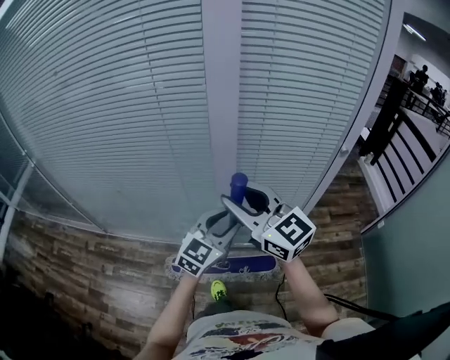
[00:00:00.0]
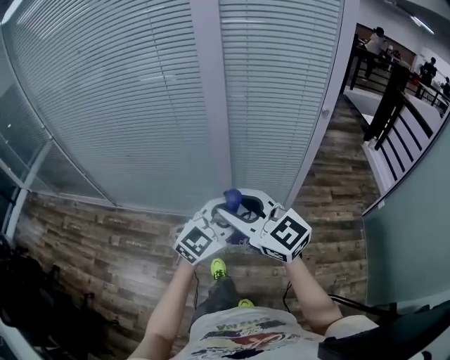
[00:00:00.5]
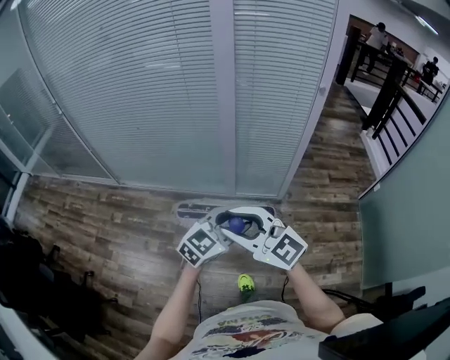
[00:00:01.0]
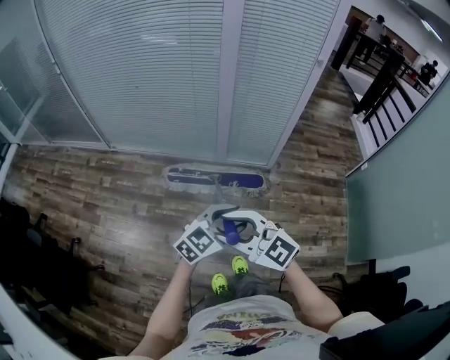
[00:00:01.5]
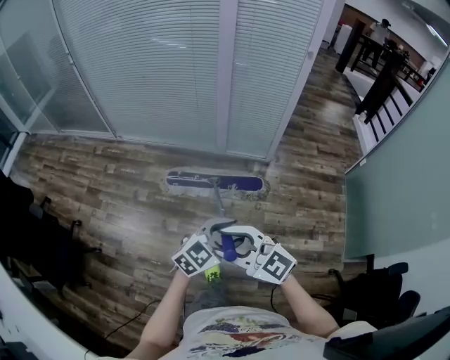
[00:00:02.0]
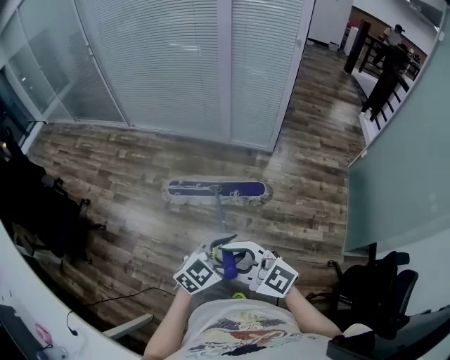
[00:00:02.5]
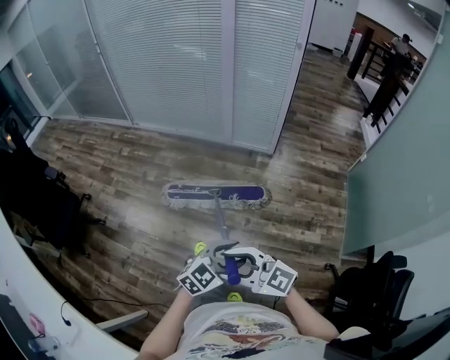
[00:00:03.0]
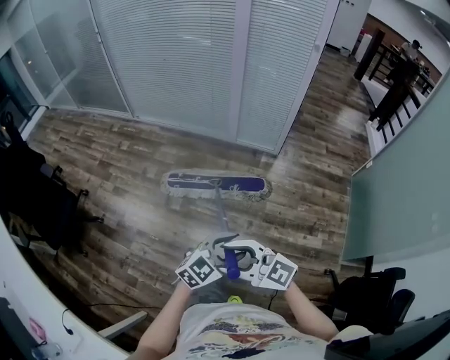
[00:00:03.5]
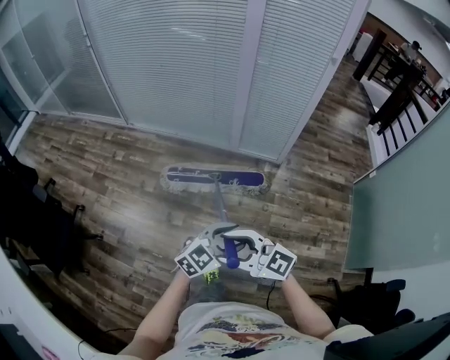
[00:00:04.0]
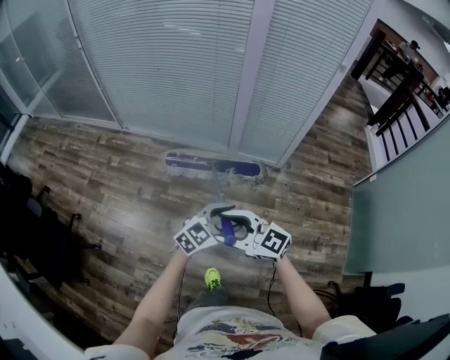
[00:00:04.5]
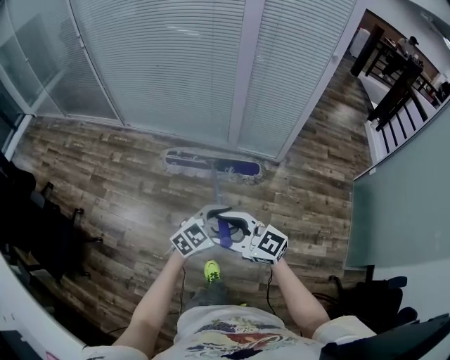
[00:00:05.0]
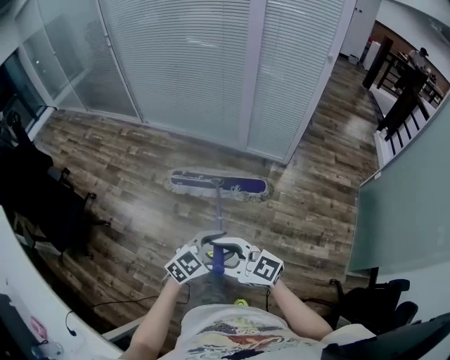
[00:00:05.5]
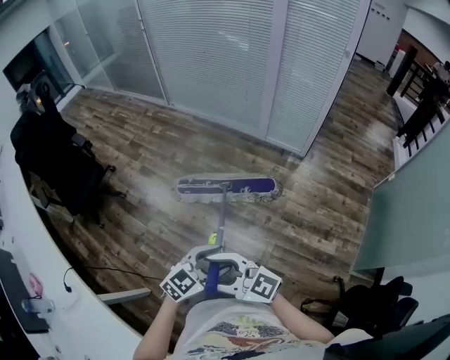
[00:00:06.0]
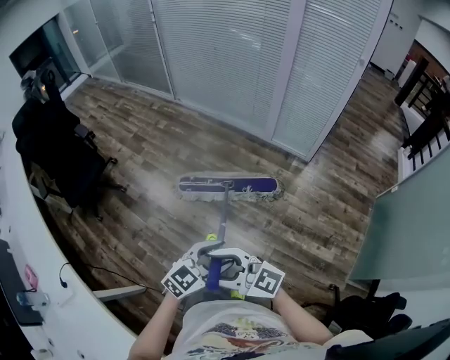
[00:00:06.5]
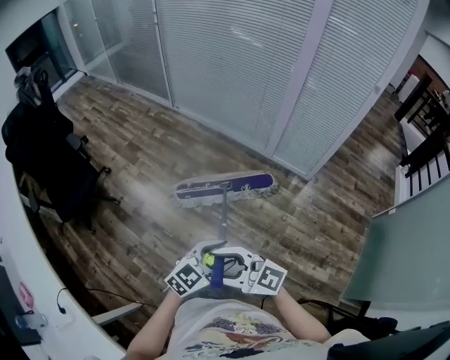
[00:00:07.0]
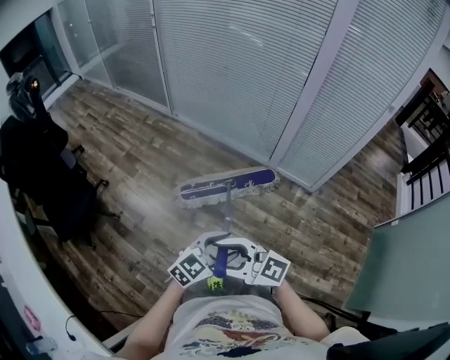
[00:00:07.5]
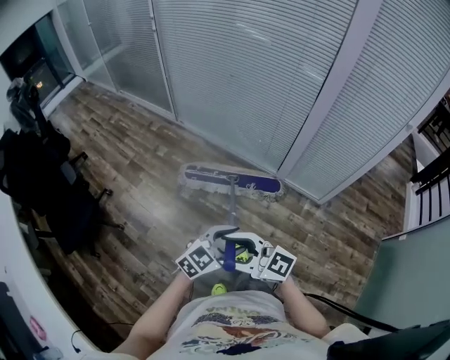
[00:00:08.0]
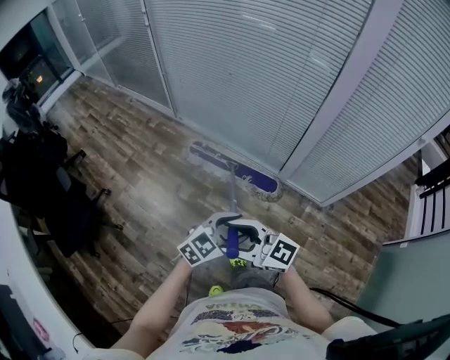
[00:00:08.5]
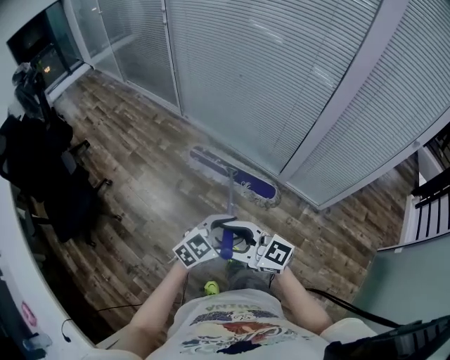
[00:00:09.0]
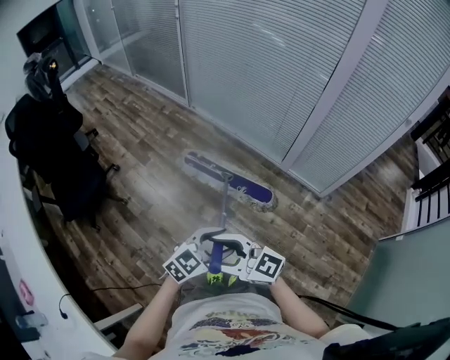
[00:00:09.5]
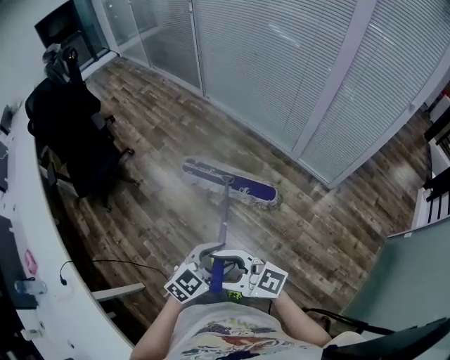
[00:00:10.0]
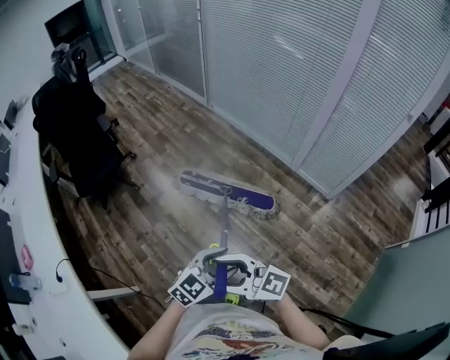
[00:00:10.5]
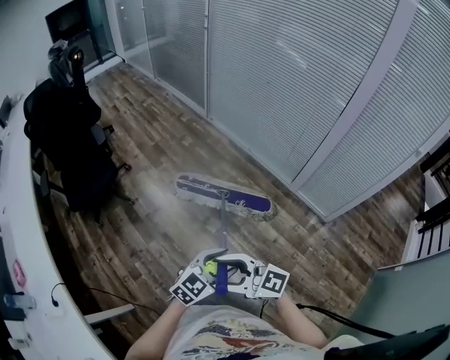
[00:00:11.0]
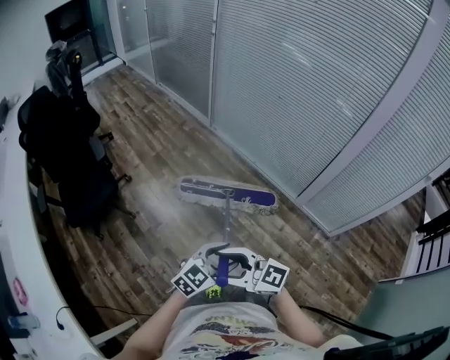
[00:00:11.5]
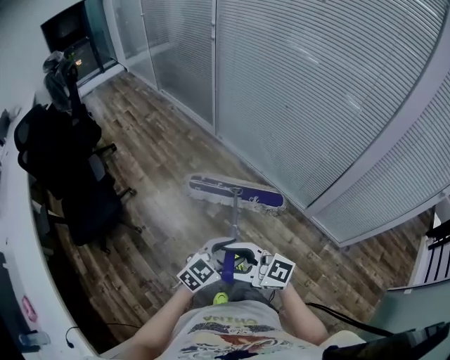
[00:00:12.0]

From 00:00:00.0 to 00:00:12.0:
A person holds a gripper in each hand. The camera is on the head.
From 00:00:00.0 to 00:00:02.0: The pair of grippers is taken roughly 80 cm. The right gripper rotates approximately 30 degrees.
From 00:00:04.0 to 00:00:06.0: The right gripper changes place by approximately 40 cm; the left gripper ends up approximately 35 cm from where it was.
From 00:00:06.0 to 00:00:08.0: The pair of grippers is taken roughly 60 cm.
From 00:00:08.0 to 00:00:10.0: The right gripper ends up about 35 cm from where it was. Meanwhile the left gripper moves roughly 35 cm.
From 00:00:10.0 to 00:00:12.0: The pair of grippers is taken approximately 50 cm.

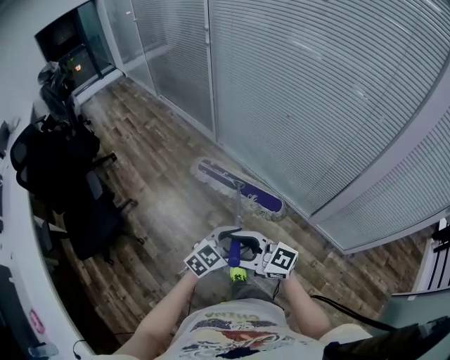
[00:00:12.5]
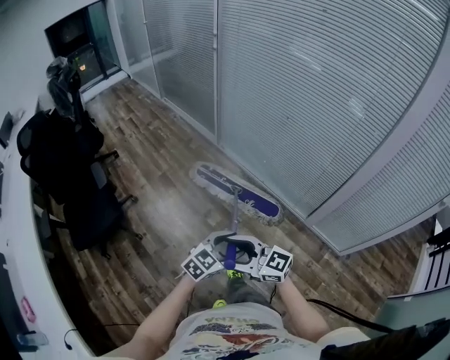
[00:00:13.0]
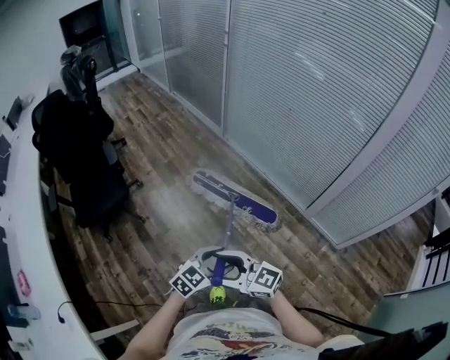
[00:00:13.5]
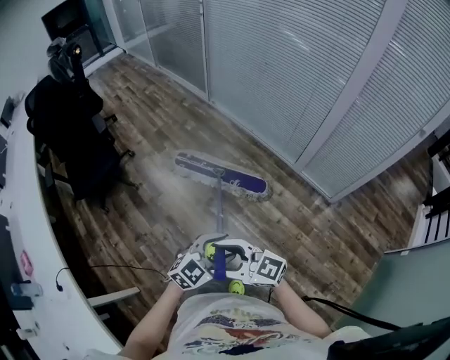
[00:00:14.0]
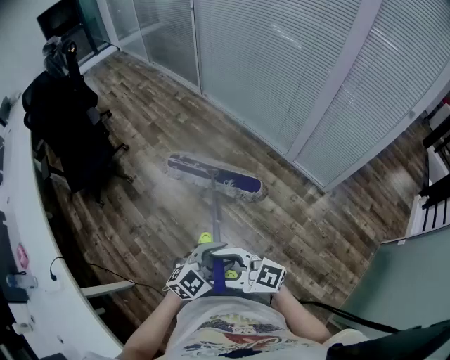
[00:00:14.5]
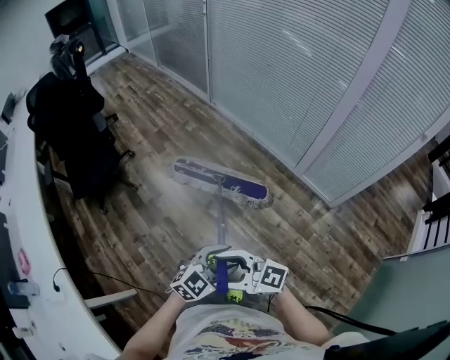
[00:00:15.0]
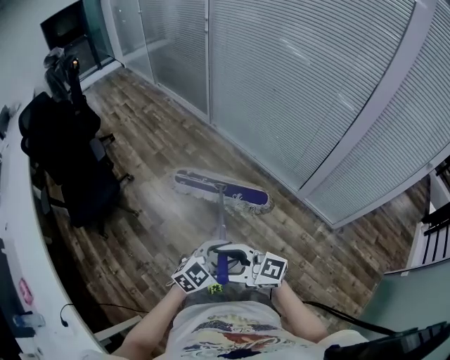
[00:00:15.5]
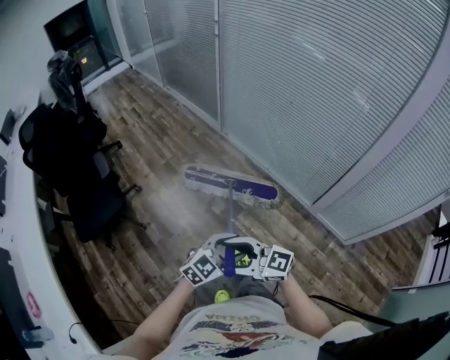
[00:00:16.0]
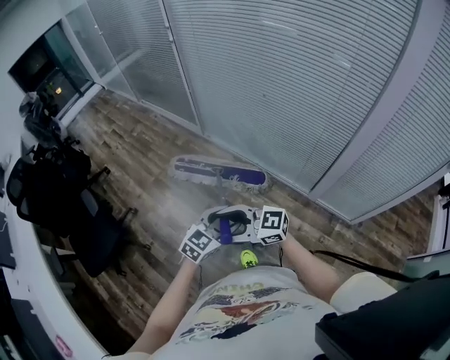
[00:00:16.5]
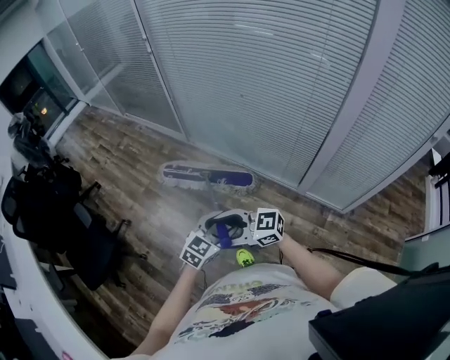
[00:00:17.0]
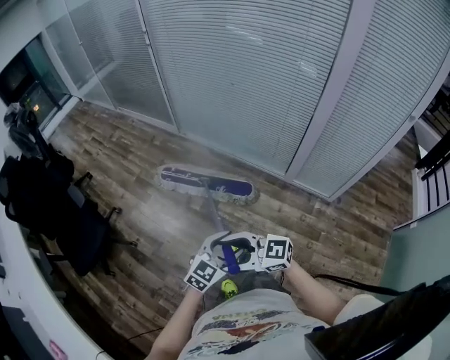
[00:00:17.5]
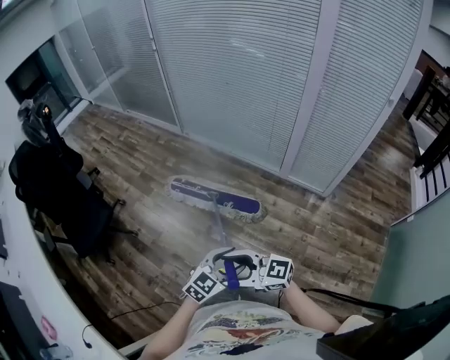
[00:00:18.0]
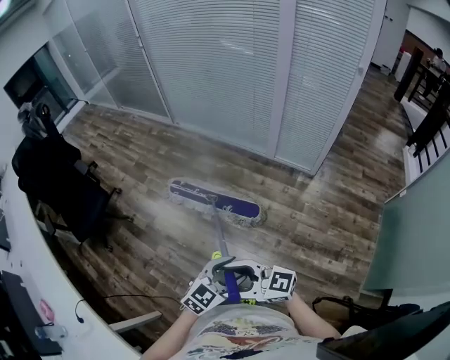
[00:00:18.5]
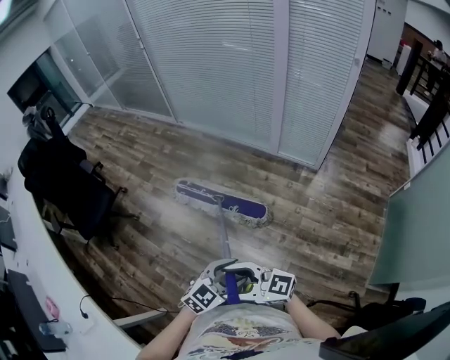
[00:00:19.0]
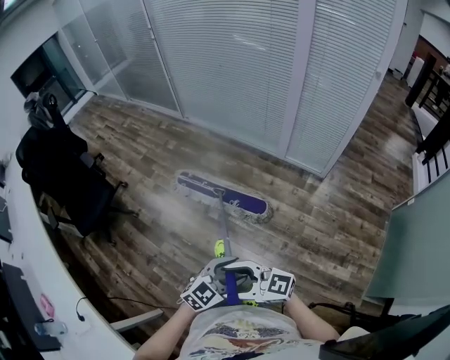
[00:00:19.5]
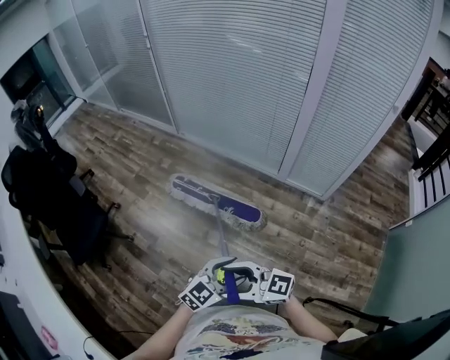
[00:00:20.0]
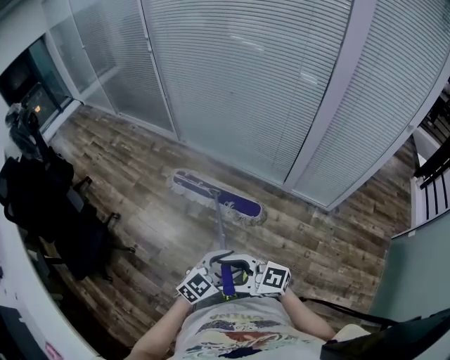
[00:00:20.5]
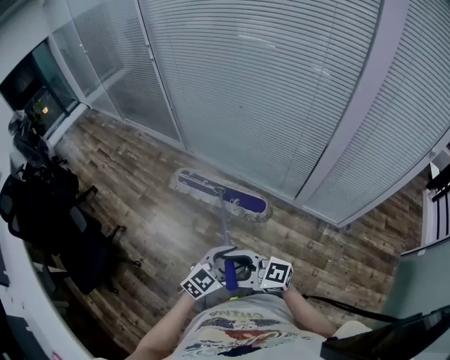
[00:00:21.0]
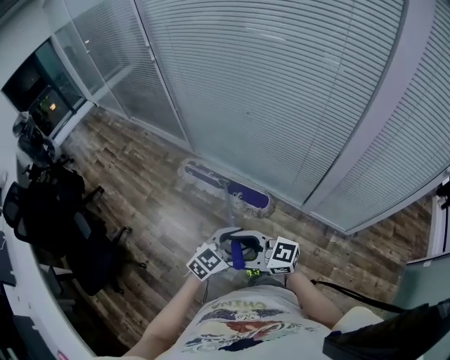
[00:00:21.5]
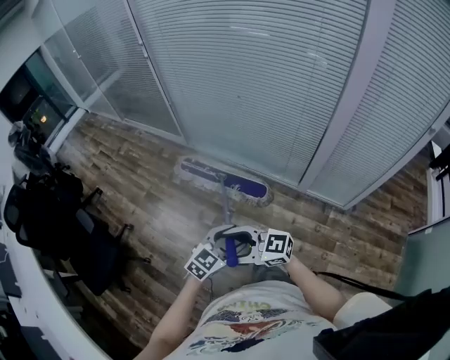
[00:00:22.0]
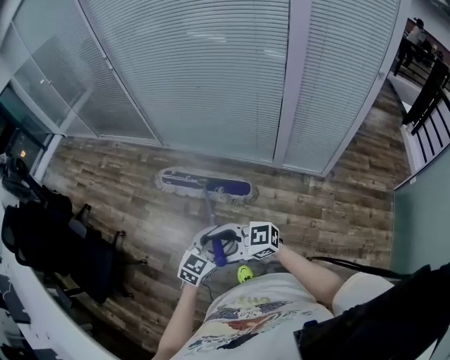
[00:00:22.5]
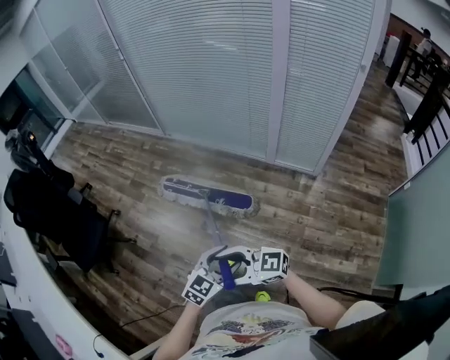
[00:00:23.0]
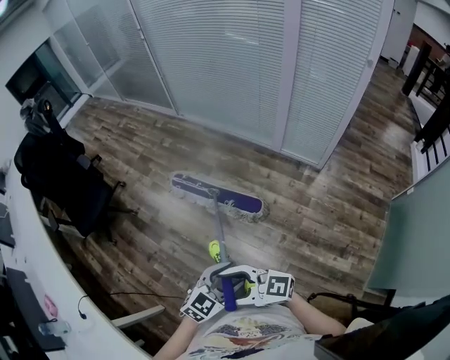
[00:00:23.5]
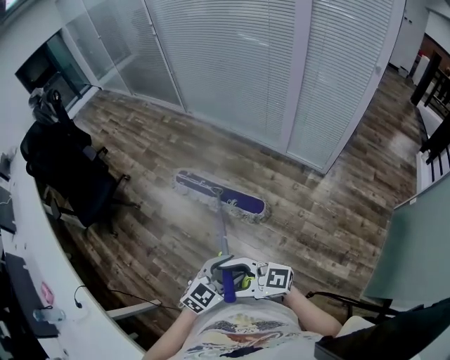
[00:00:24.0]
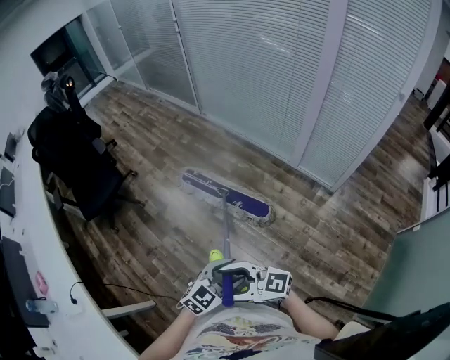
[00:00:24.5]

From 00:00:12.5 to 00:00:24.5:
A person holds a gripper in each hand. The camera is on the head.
From 00:00:12.5 to 00:00:14.5: The pair of grippers is taken some 60 cm.
From 00:00:14.5 to 00:00:16.5: Both grippers are carried about 70 cm.
From 00:00:16.5 to 00:00:18.5: Both grippers are carried approximately 80 cm.
From 00:00:18.5 to 00:00:20.5: Both grippers are carried approximately 50 cm.
From 00:00:22.5 to 00:00:24.5: Both grippers are carried approximately 40 cm.

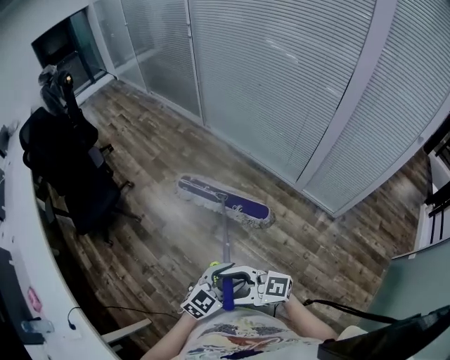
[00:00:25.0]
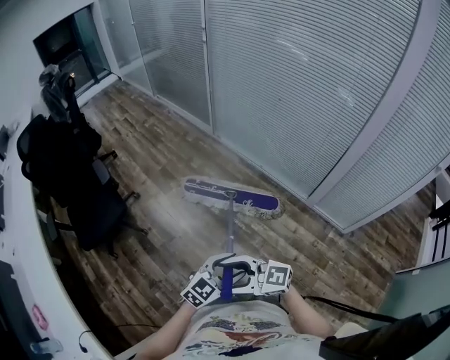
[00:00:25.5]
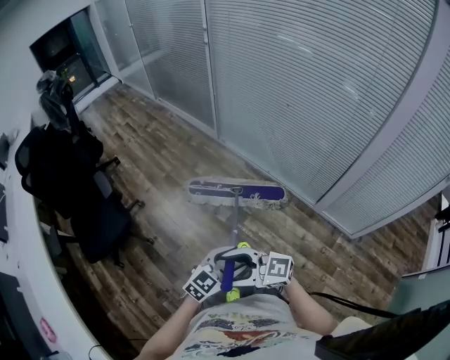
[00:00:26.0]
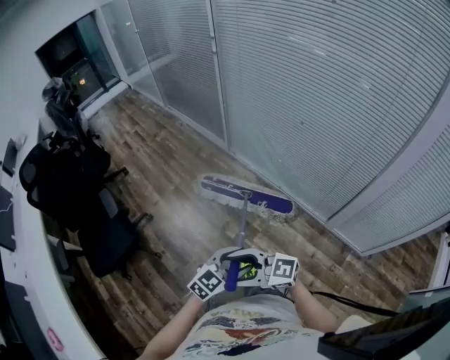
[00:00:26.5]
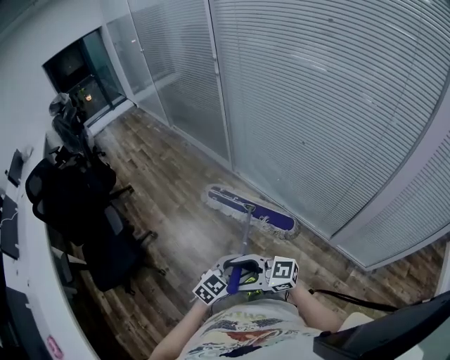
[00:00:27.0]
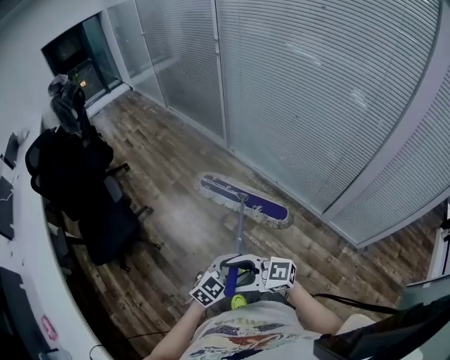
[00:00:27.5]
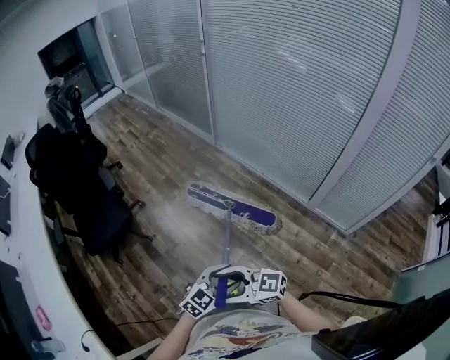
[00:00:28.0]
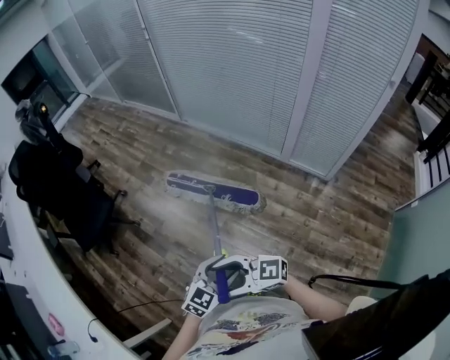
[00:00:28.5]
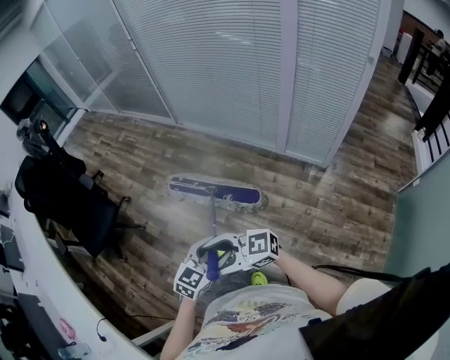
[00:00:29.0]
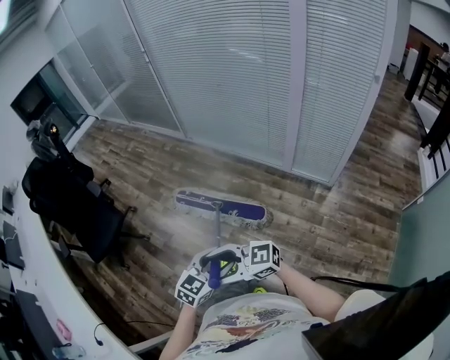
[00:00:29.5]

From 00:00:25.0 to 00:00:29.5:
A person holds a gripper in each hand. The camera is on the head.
From 00:00:25.0 to 00:00:27.0: Both grippers are carried approximately 50 cm.
From 00:00:27.0 to 00:00:29.5: Both grippers are carried roughly 60 cm.
